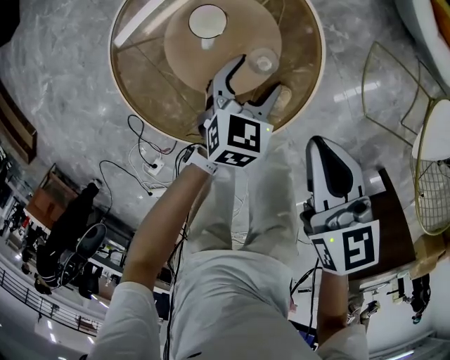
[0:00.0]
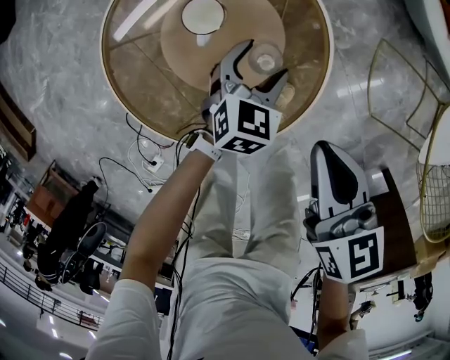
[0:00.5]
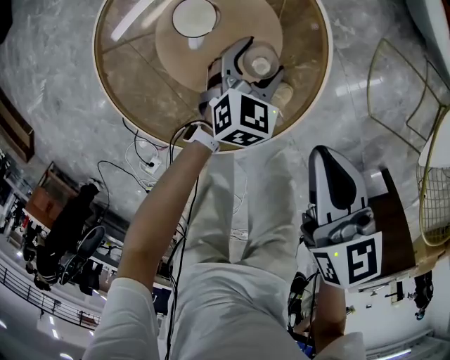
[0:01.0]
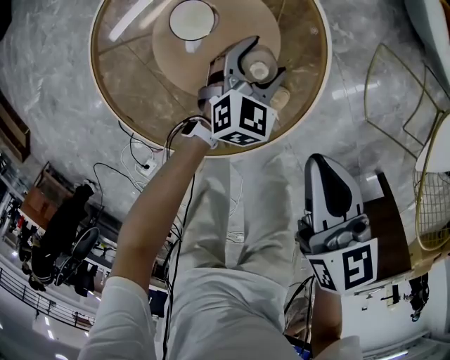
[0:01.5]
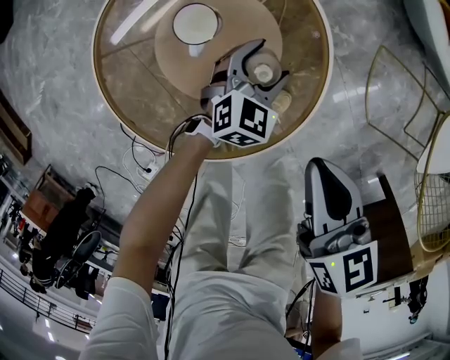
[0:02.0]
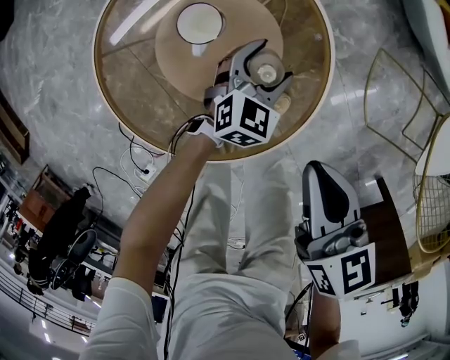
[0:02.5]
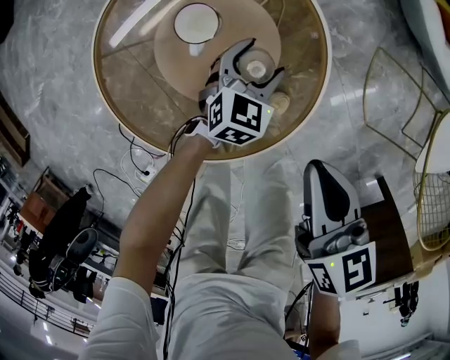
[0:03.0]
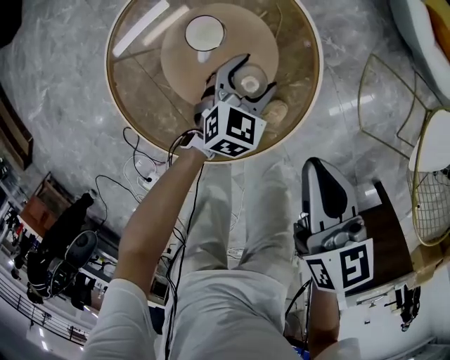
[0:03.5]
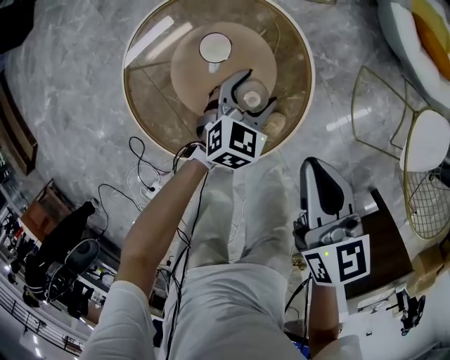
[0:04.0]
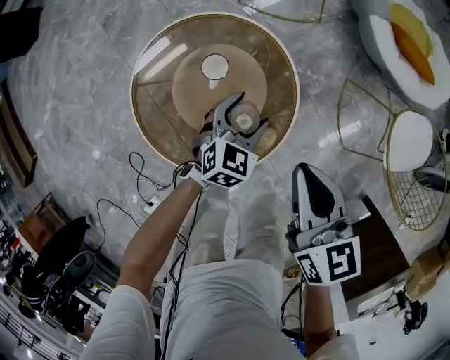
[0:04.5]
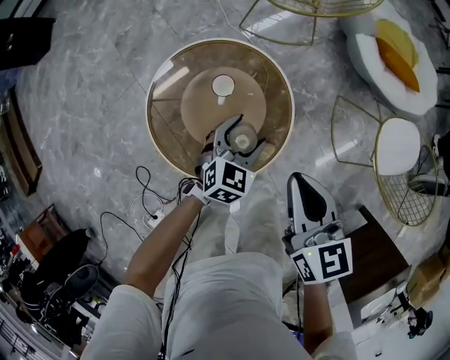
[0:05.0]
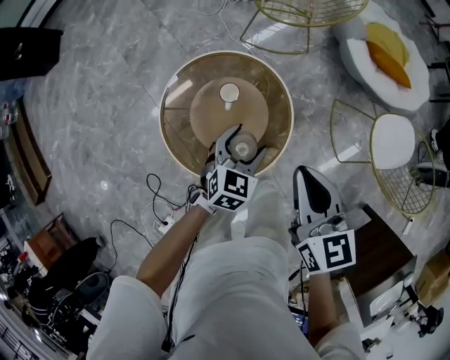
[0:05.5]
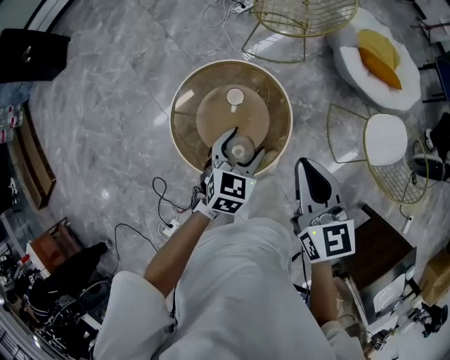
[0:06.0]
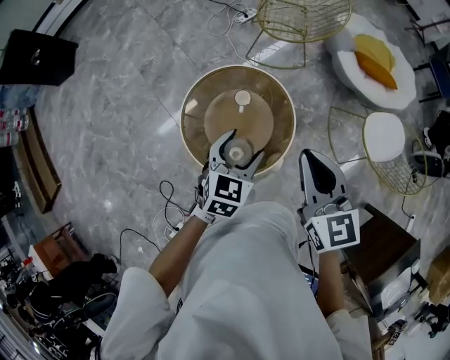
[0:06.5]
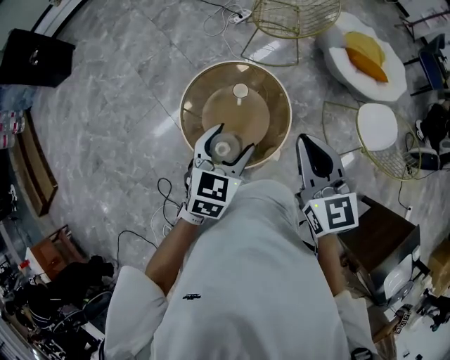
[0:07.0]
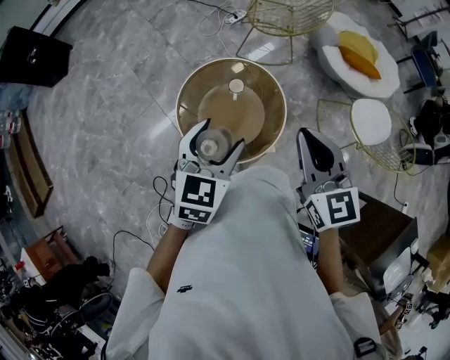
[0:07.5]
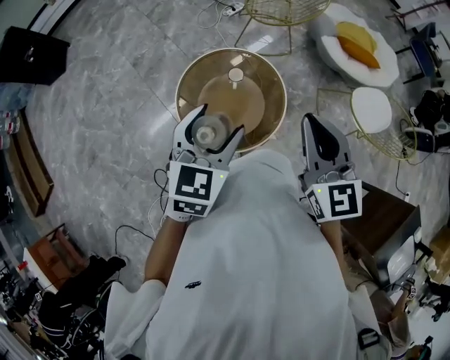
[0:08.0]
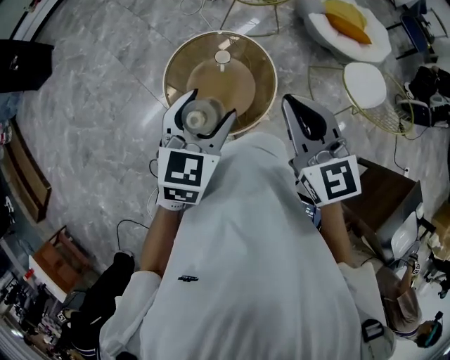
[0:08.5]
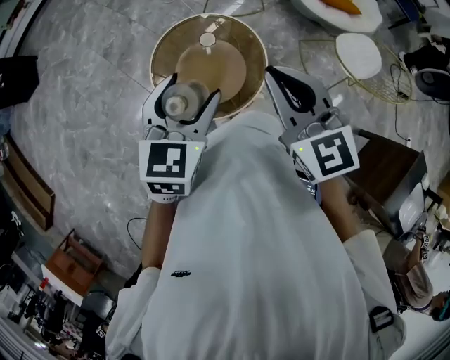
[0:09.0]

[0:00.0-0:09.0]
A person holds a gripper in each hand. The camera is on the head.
0:00.0 to 0:02.0: The left gripper heads downward, covering roughly 10 cm.
0:02.0 to 0:04.5: Both grippers move upward, roughly 15 cm.
0:04.5 to 0:07.0: Both grippers travel together upward, approximately 30 cm. The right gripper turns by roughly 30 degrees.
0:07.0 to 0:09.0: The left gripper travels upward by about 5 cm; the right gripper goes approximately 5 cm backward.

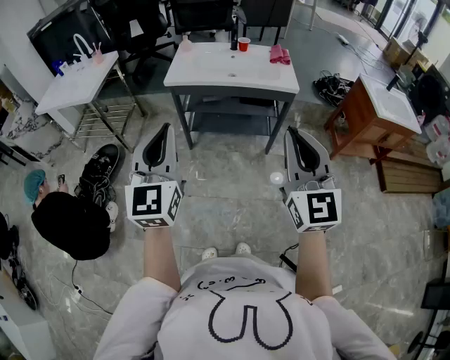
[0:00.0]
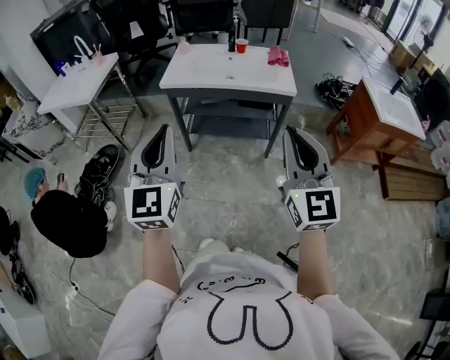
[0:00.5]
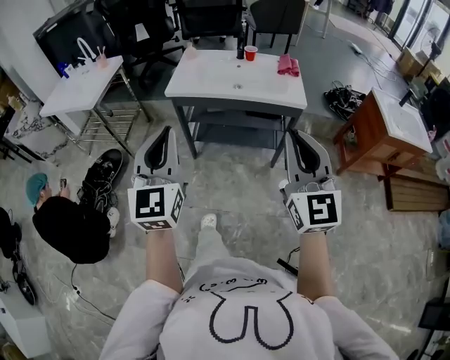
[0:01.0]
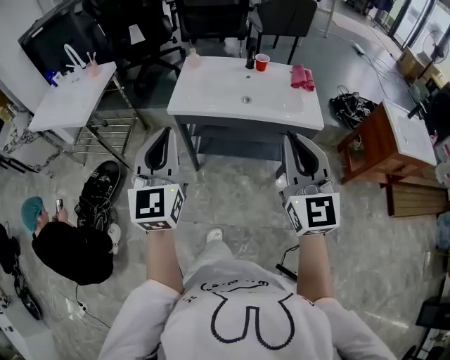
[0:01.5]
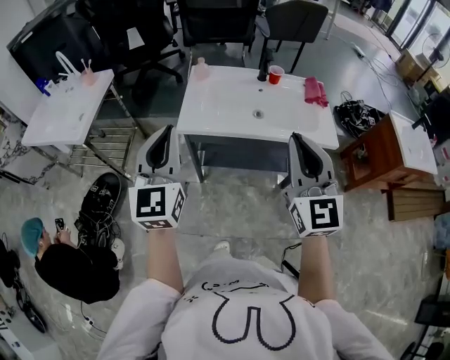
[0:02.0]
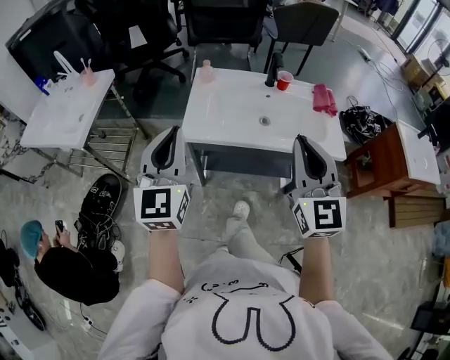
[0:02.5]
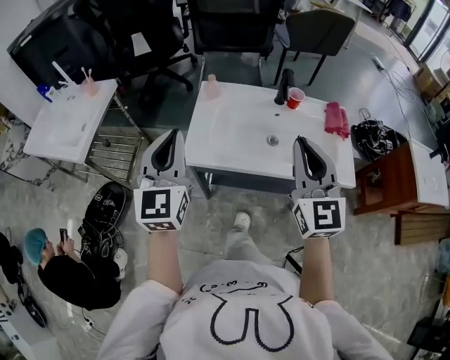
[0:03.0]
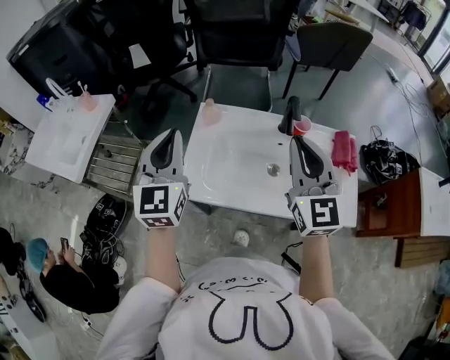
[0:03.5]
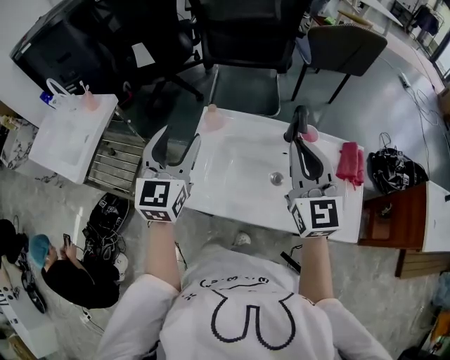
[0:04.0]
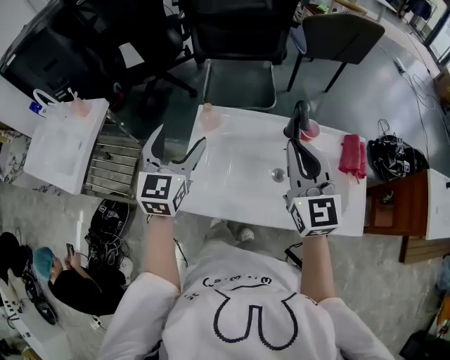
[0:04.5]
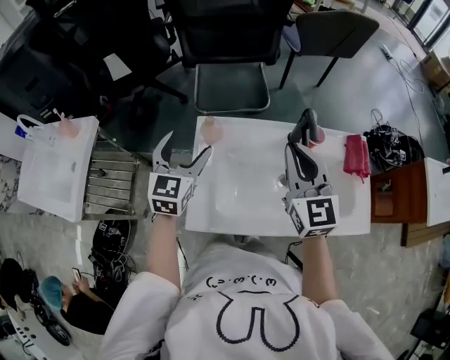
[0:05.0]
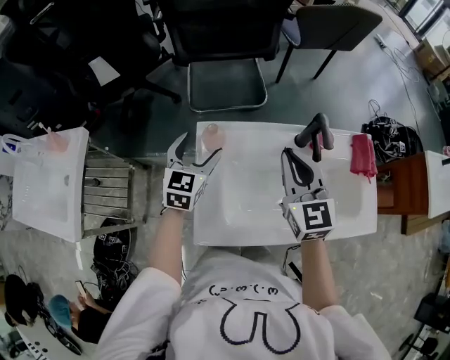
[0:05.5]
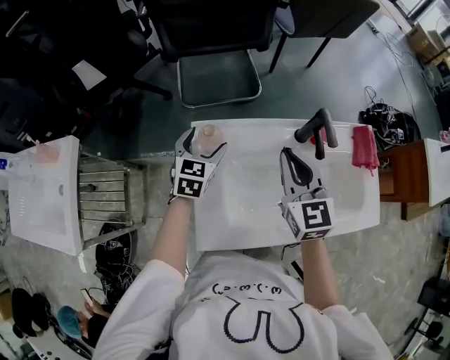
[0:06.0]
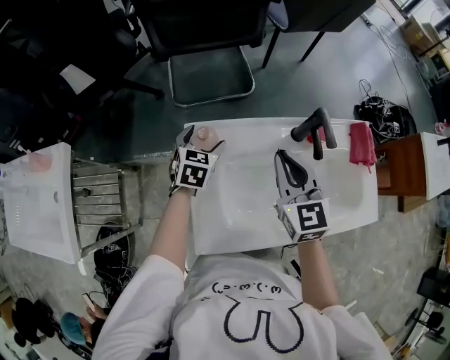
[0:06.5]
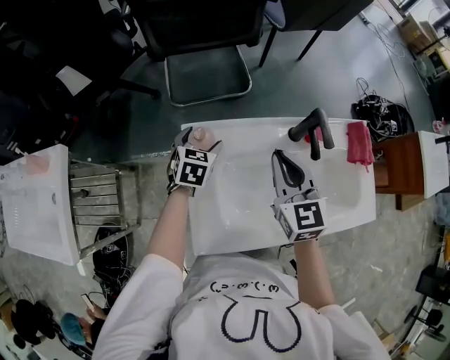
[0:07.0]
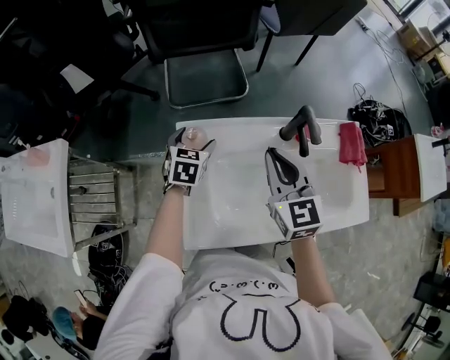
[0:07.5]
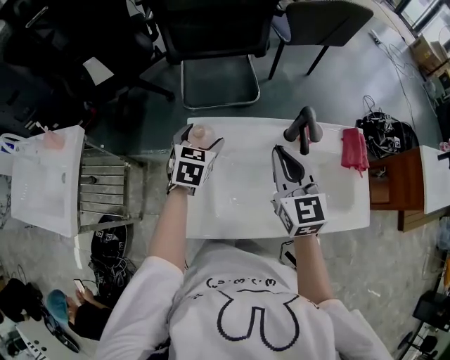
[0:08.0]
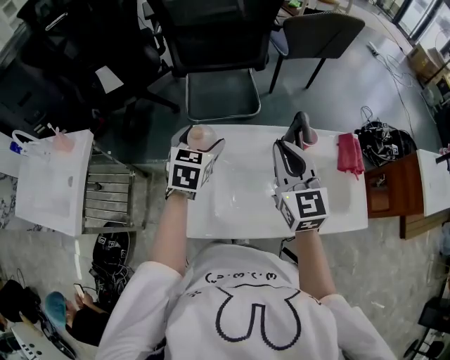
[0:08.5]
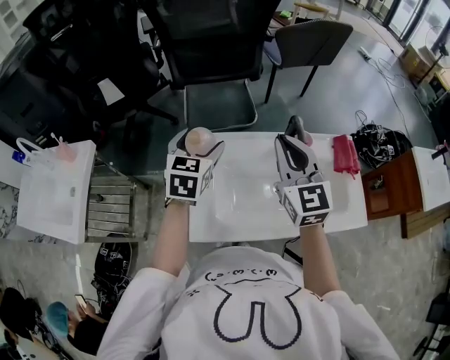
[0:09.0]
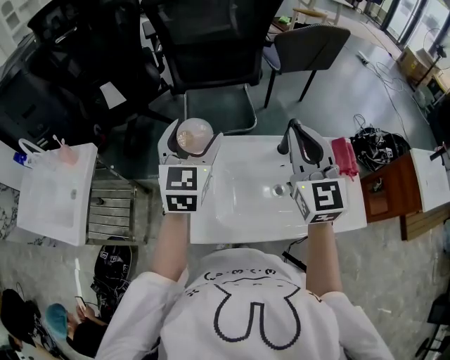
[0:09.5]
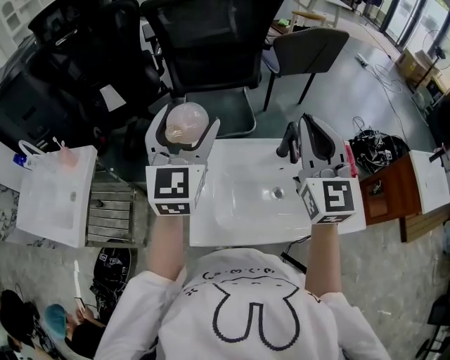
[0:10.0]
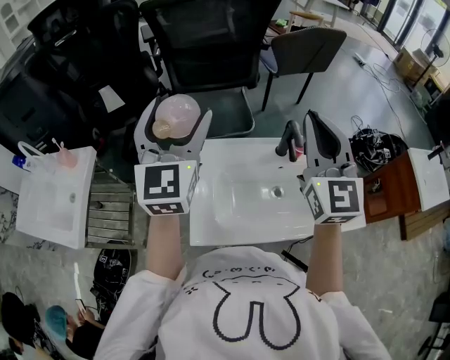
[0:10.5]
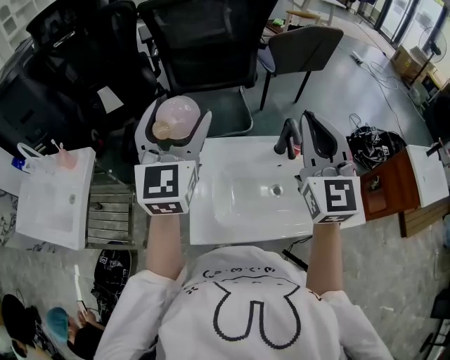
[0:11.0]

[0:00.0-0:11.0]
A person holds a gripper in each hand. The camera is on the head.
0:00.0 to 0:02.0: The two grippers go about 35 cm forward.
0:02.0 to 0:03.5: Both grippers travel together forward, roughly 30 cm.
0:03.5 to 0:05.5: The right gripper heads forward, downward and to the left, covering about 20 cm; the left gripper is displaced forward and downward by some 30 cm, turns by some 30 degrees, and opens.
0:05.5 to 0:07.5: The left gripper travels downward by about 10 cm, and rotates about 20 degrees.
0:07.5 to 0:09.0: The left gripper heads upward, covering some 20 cm, while the right gripper moves upward, some 10 cm.
0:09.0 to 0:11.0: The right gripper goes some 10 cm upward; the left gripper heads upward, covering about 20 cm, and tips its fingers upward by approximately 30 degrees.

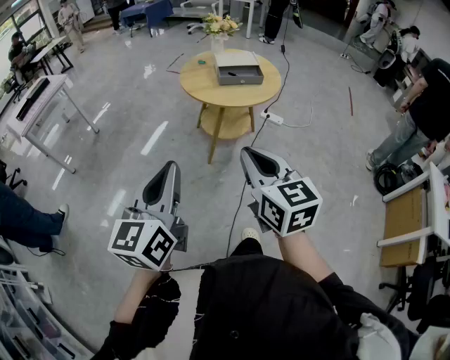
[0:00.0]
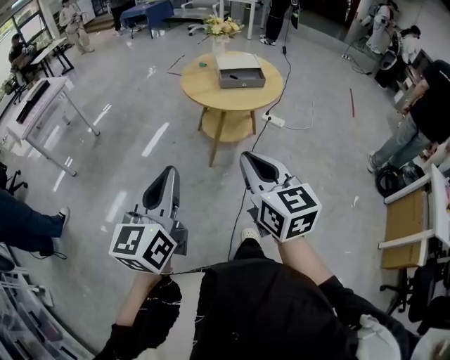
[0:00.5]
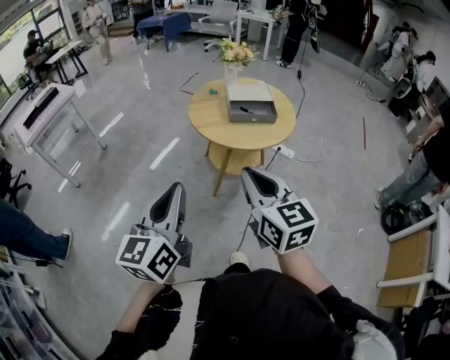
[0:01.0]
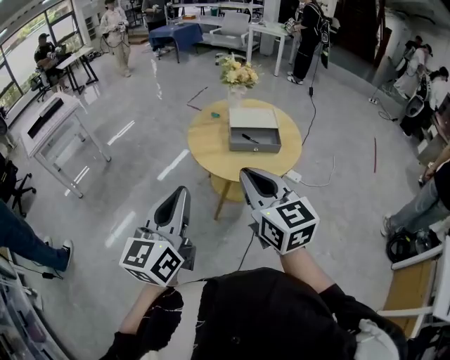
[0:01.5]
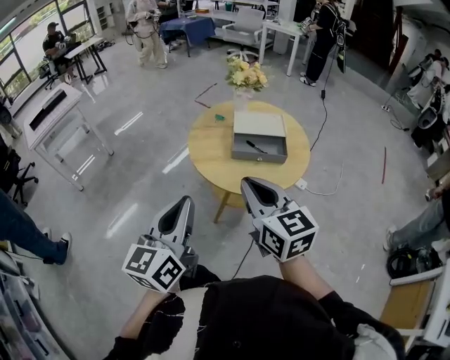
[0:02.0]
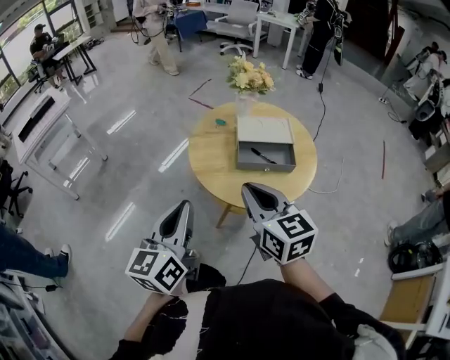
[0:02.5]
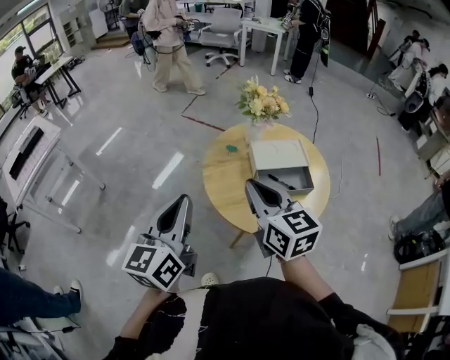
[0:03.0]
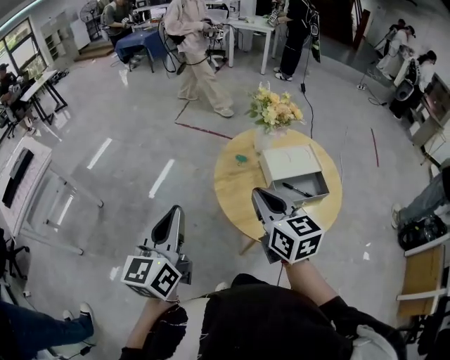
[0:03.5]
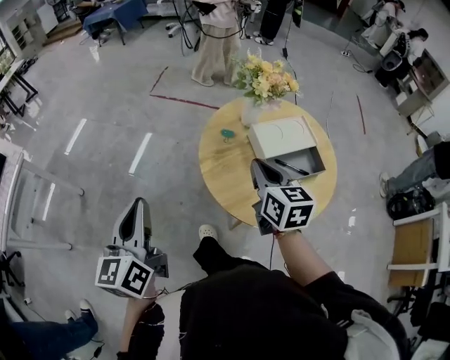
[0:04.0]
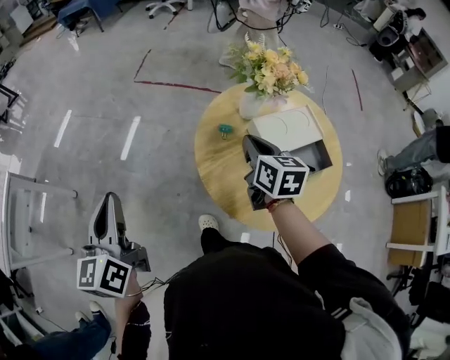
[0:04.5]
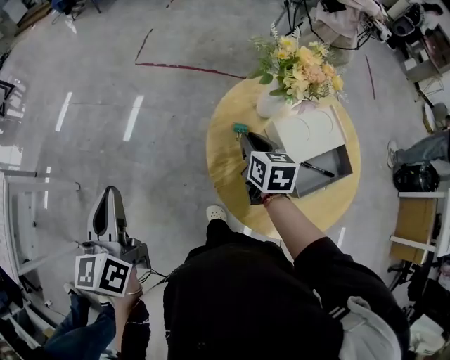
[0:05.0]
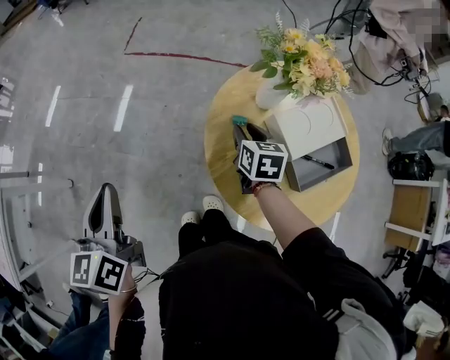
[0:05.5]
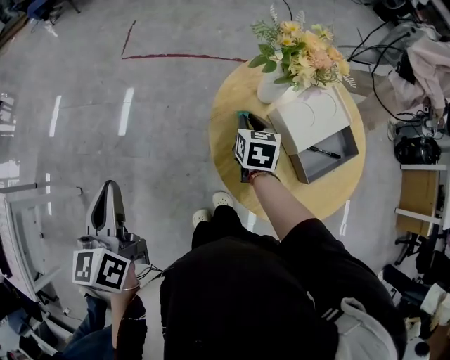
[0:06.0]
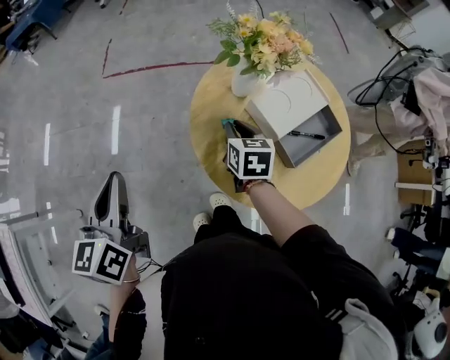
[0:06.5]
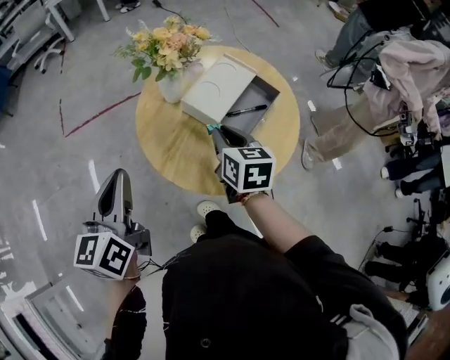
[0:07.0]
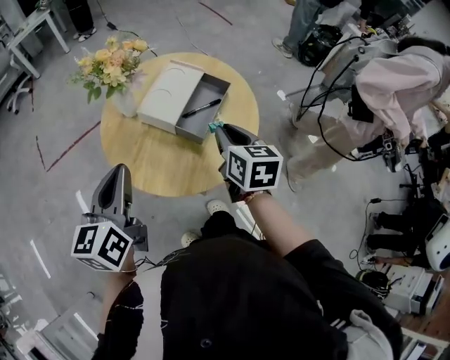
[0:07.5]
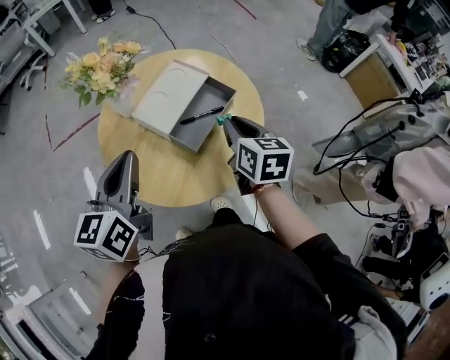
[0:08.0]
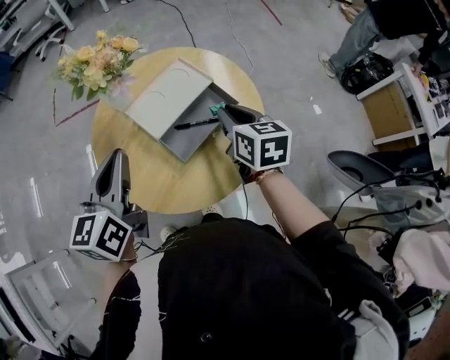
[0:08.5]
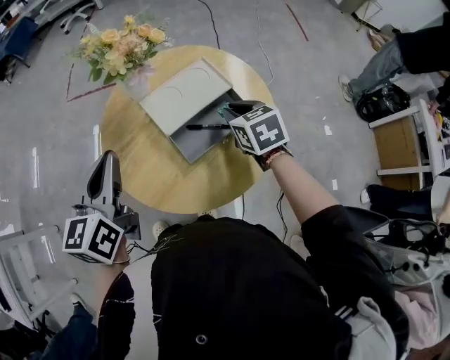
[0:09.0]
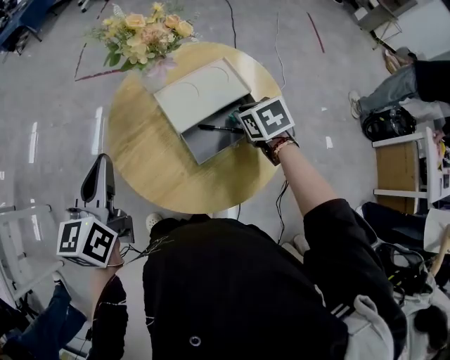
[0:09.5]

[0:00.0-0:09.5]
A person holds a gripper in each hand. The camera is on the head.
0:00.0 to 0:02.0: The right gripper shifts some 30 cm forward. Meanwhile the left gripper travels forward and to the right by roughly 30 cm.
0:02.0 to 0:04.0: The right gripper shifts roughly 30 cm forward, and changes its angle by approximately 40 degrees. The left gripper shifts roughly 40 cm forward and to the left.
0:04.0 to 0:05.5: The right gripper moves forward and downward, about 25 cm, swivels roughly 20 degrees, and opens its fingers, while the left gripper is displaced forward and to the left by about 20 cm.
0:05.5 to 0:07.5: The left gripper moves about 25 cm, and turns by roughly 50 degrees. The right gripper ends up approximately 30 cm from where it was, and swivels approximately 40 degrees.
0:07.5 to 0:09.5: The left gripper changes its angle by some 40 degrees. Meanwhile the right gripper changes place by about 20 cm, and points its fingers some 30 degrees further downward.
